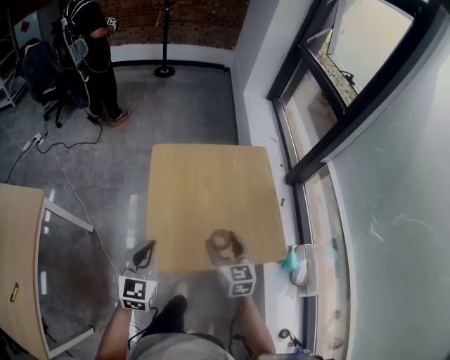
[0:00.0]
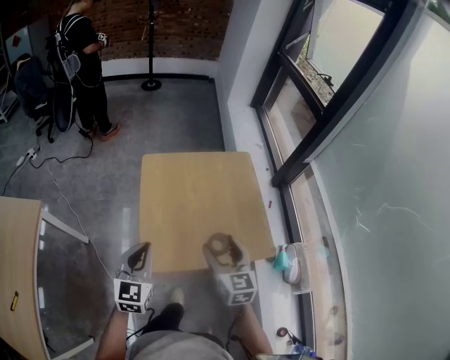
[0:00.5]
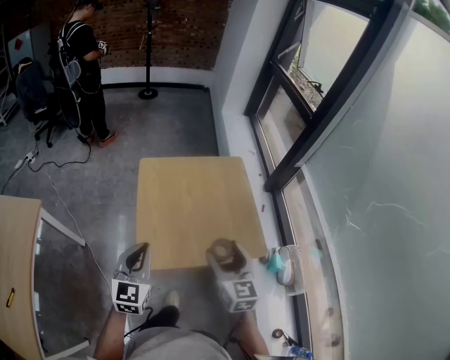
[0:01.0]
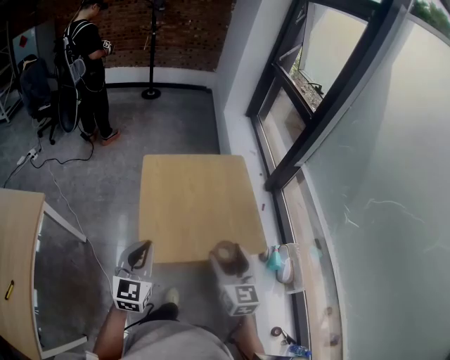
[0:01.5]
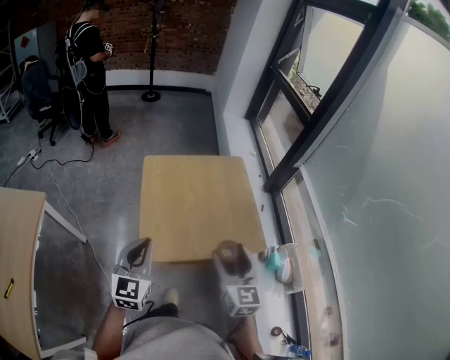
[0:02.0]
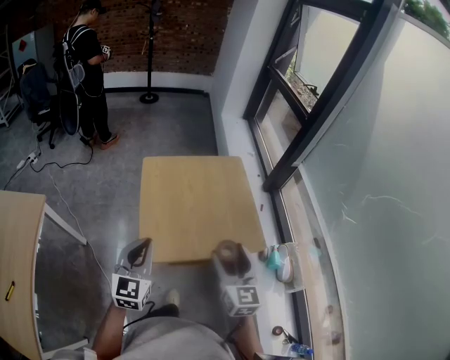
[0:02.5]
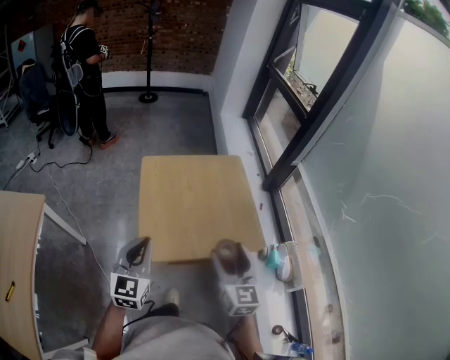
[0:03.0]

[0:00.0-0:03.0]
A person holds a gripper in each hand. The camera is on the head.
0:00.0 to 0:01.5: The left gripper heads upward and backward, covering about 10 cm. The right gripper moves upward and backward, roughly 20 cm.
0:01.5 to 0:03.0: The grippers make only small movements.

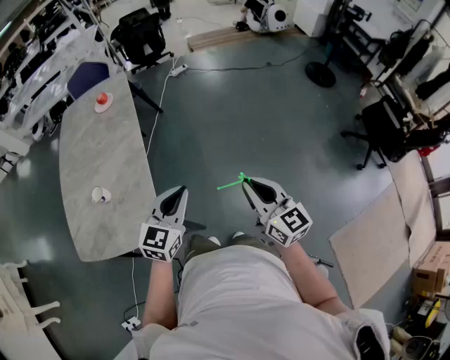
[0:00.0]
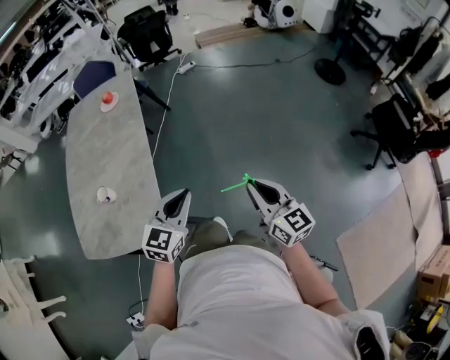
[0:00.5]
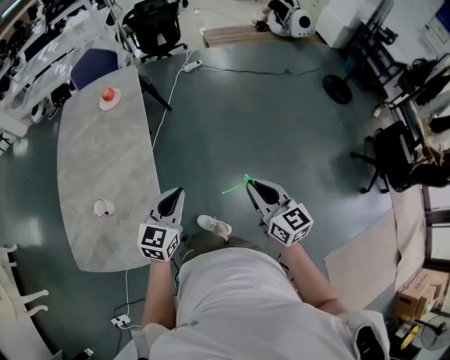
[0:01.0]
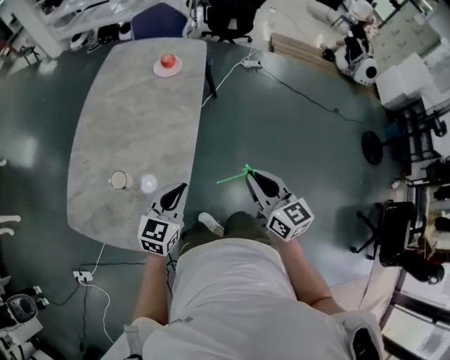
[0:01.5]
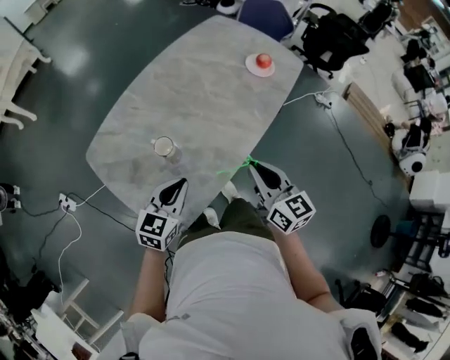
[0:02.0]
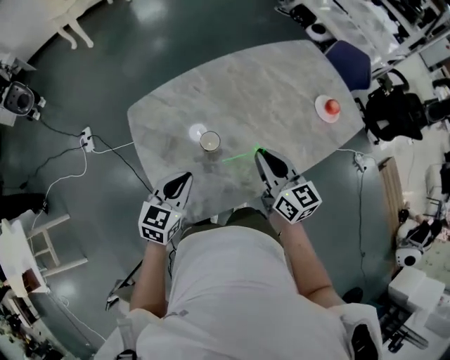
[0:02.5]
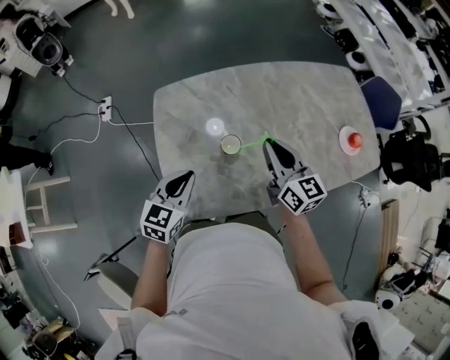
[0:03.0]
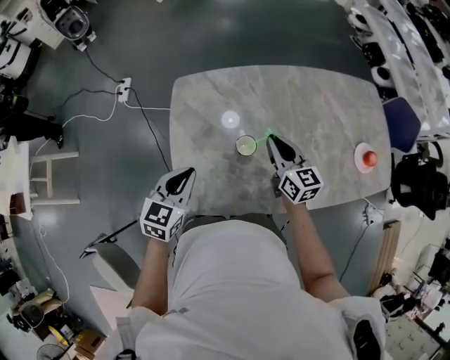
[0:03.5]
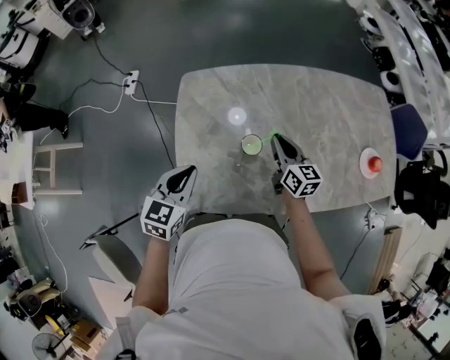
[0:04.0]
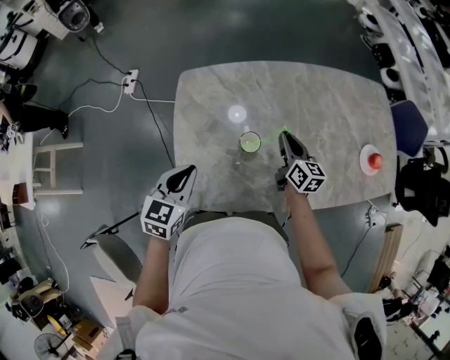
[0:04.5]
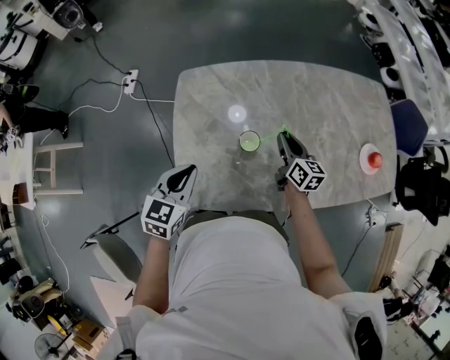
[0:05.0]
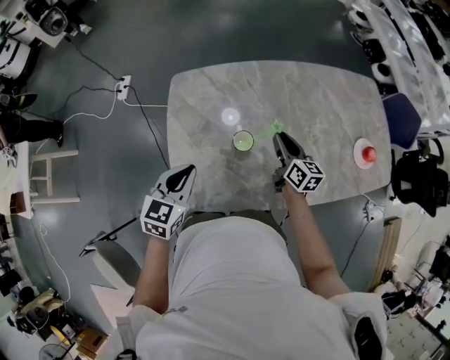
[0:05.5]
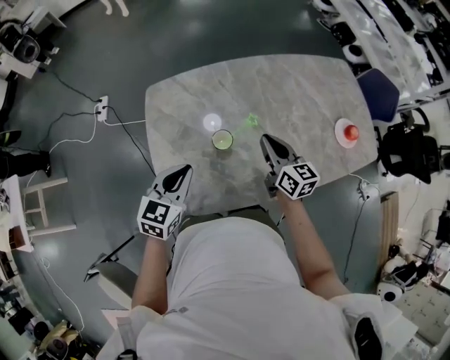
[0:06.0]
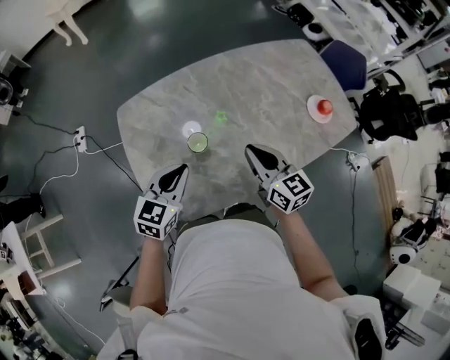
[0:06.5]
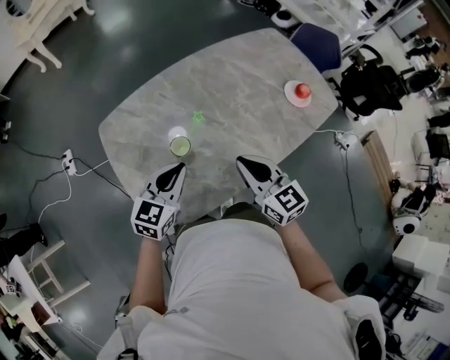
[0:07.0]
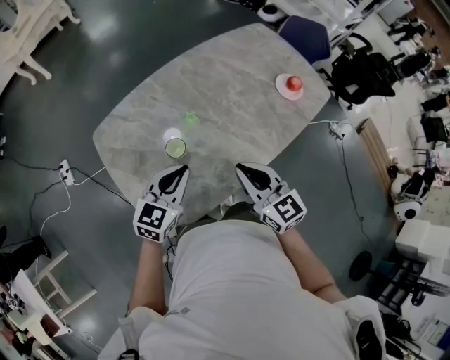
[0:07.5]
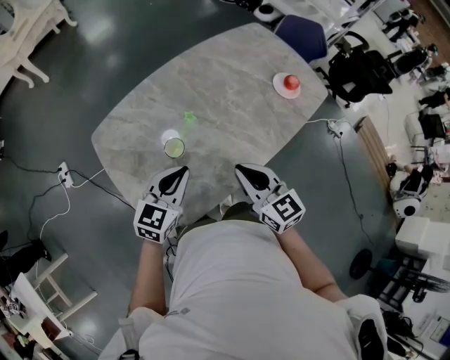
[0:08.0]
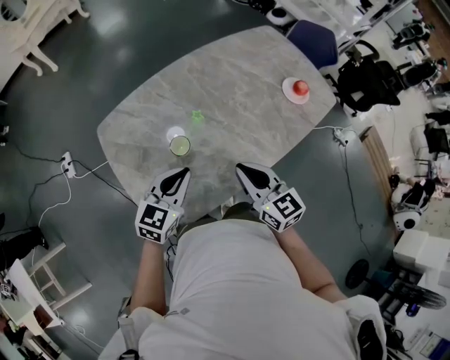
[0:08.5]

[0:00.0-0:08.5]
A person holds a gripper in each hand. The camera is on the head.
0:00.0 to 0:02.0: The left gripper moves some 35 cm, and turns by some 50 degrees. The right gripper moves approximately 50 cm, and turns by approximately 50 degrees.
0:02.0 to 0:04.0: The left gripper changes place by some 20 cm, and changes its angle by approximately 50 degrees. Meanwhile the right gripper shifts by roughly 35 cm, and rotates roughly 40 degrees.
0:04.0 to 0:06.5: The left gripper shifts some 10 cm to the right, and rotates roughly 20 degrees. Meanwhile the right gripper goes some 15 cm backward, upward and to the right.
0:06.5 to 0:08.5: The right gripper is displaced backward by some 10 cm. The left gripper moves to the right, approximately 5 cm.

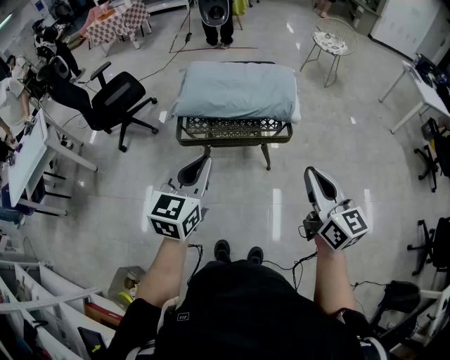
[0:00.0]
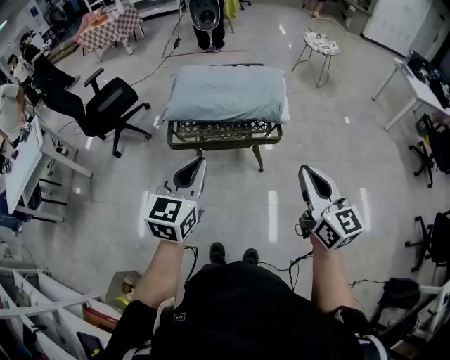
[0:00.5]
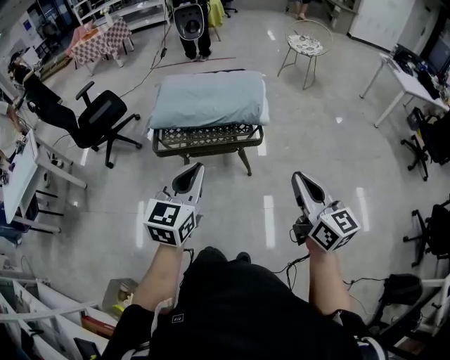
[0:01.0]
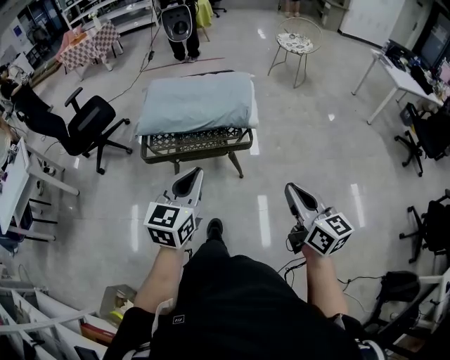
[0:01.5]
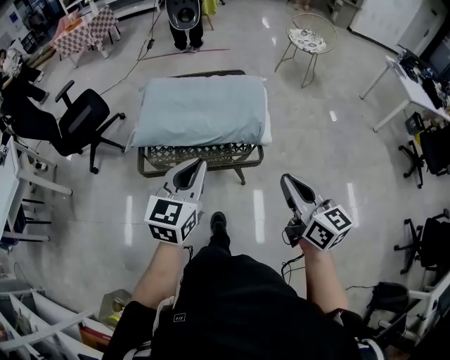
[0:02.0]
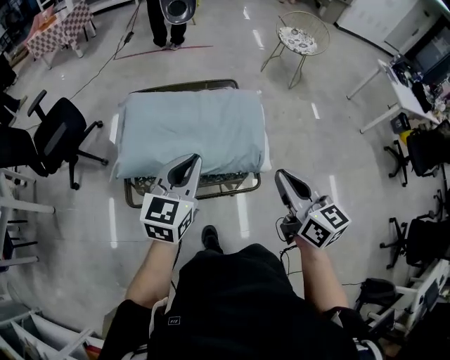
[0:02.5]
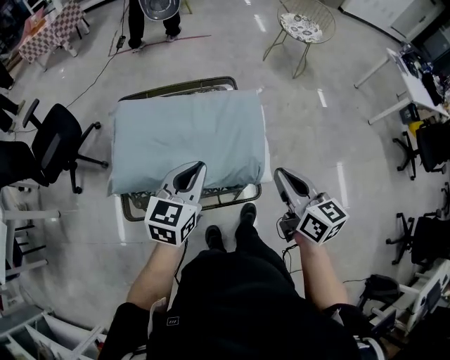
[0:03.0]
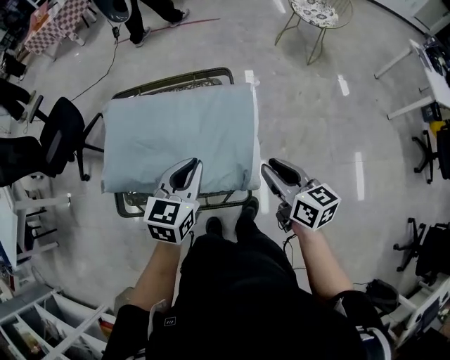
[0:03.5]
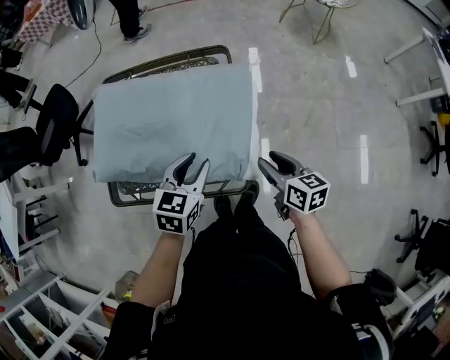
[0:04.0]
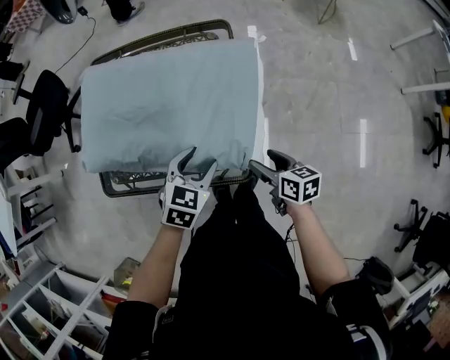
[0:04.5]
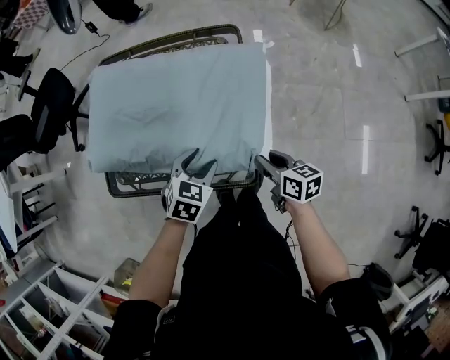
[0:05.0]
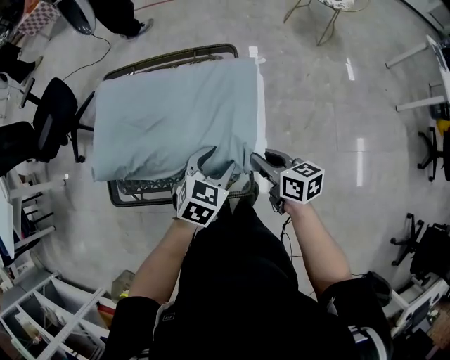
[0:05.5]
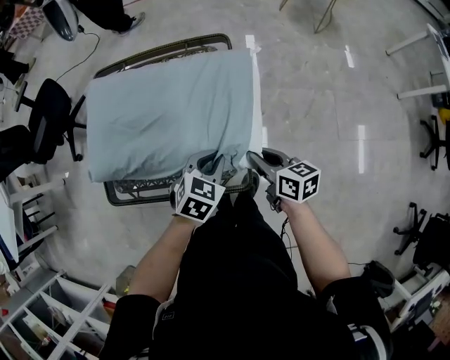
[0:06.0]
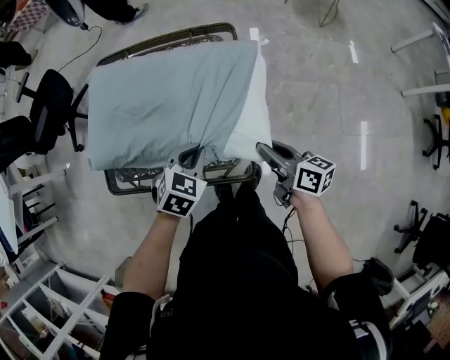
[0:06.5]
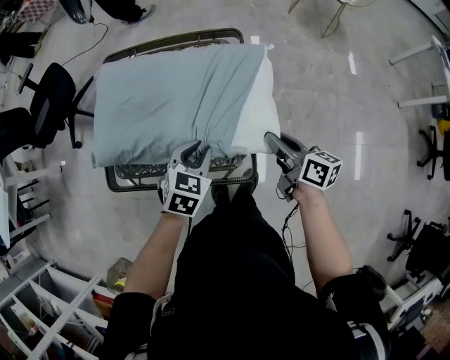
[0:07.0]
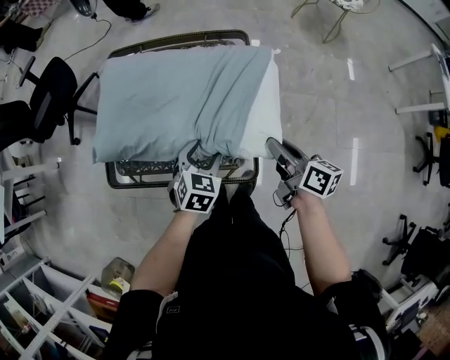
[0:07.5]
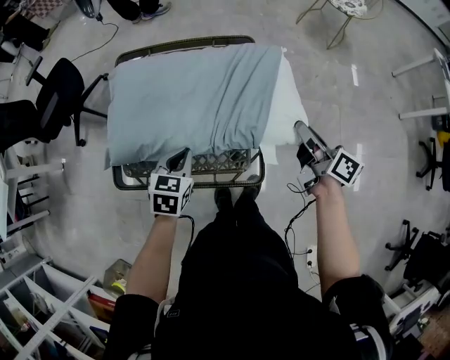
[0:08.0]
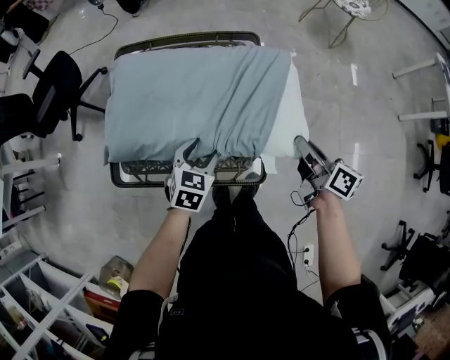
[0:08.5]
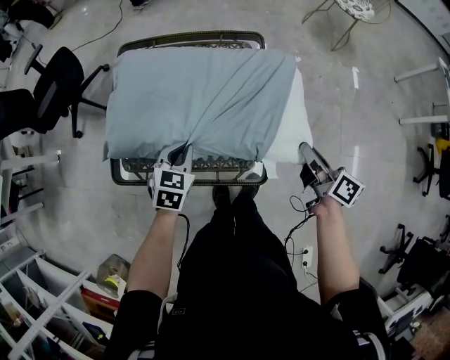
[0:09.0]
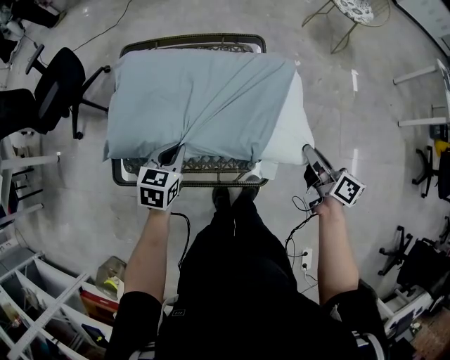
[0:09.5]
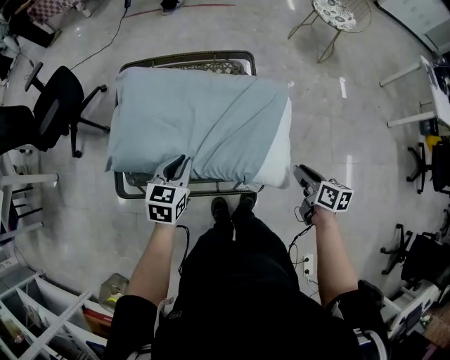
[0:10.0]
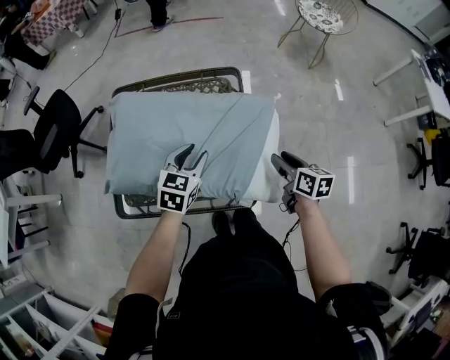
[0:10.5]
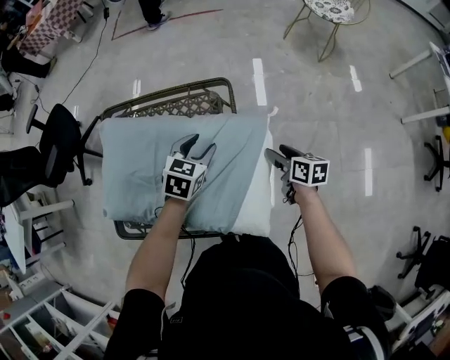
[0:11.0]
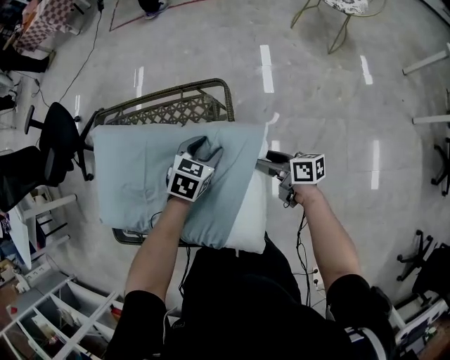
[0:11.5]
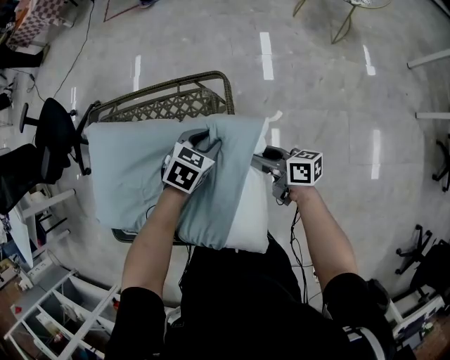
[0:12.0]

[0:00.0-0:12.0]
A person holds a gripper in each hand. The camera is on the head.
0:00.0 to 0:02.0: Both grippers travel together forward and to the right, roughly 20 cm.
0:02.0 to 0:04.0: The left gripper shifts approximately 35 cm forward, downward and to the right, swivels approximately 20 degrees, and opens, while the right gripper is displaced forward and downward by roughly 40 cm, and rotates about 30 degrees.
0:04.0 to 0:06.0: The right gripper heads to the left, covering roughly 5 cm; the left gripper moves up and down over approximately 10 cm, changing direction 2 times.
0:06.0 to 0:08.0: The right gripper shifts approximately 15 cm upward, to the right and forward, and rotates approximately 20 degrees; the left gripper goes approximately 15 cm to the left, swivels some 20 degrees, and opens, then closes once more.
0:08.0 to 0:10.0: The right gripper shifts approximately 15 cm backward and downward, and rotates about 30 degrees; the left gripper reaches some 5 cm to the right, then returns, and opens, then closes again.
0:10.0 to 0:12.0: The right gripper heads forward, covering roughly 25 cm, and swivels roughly 40 degrees, while the left gripper is displaced forward and to the right by about 35 cm, turns by some 30 degrees, and opens up.

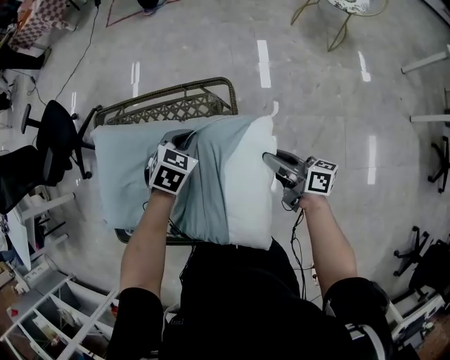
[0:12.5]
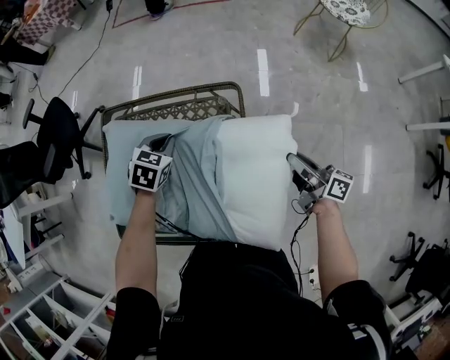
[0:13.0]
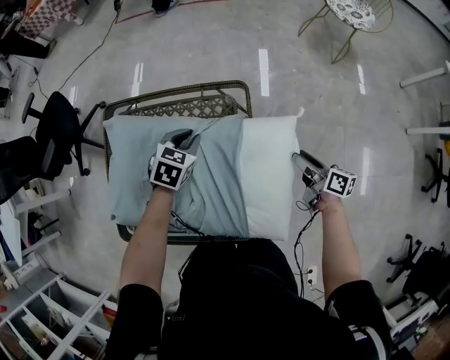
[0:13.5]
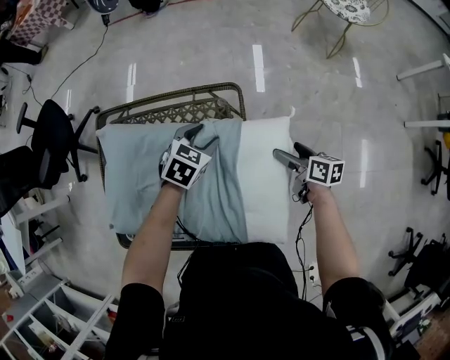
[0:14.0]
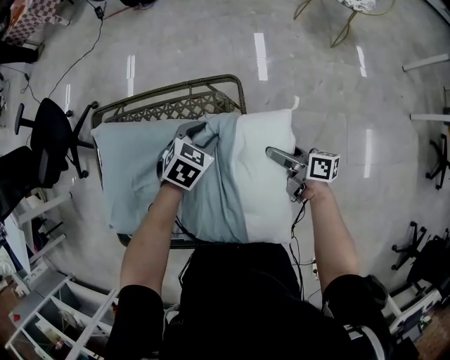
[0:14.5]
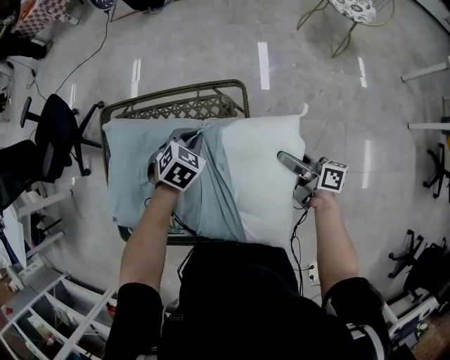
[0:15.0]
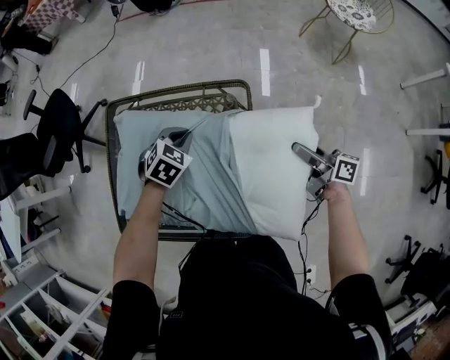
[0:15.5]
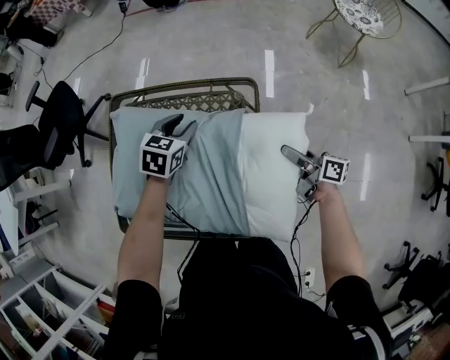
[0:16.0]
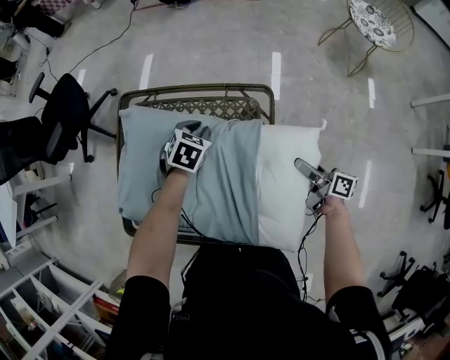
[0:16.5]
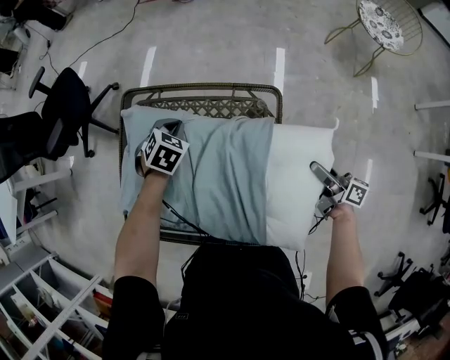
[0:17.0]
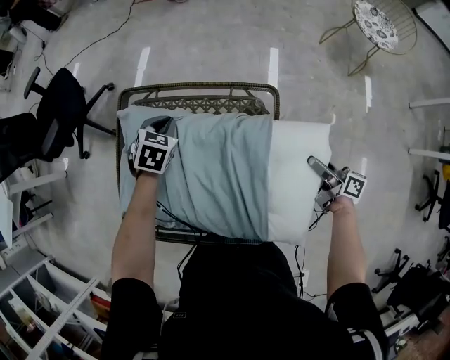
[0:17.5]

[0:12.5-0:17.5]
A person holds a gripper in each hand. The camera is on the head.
0:12.5 to 0:15.0: The left gripper swings left and right, approximately 10 cm each way, with 2 reversals, and opens, then closes again; the right gripper goes downward and returns, roughly 5 cm each way, and opens and closes again.
0:15.0 to 0:17.5: The left gripper goes roughly 20 cm to the left and forward, swivels about 20 degrees, and opens, then closes once more.
